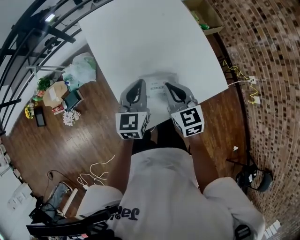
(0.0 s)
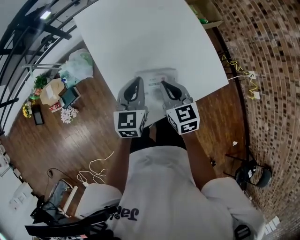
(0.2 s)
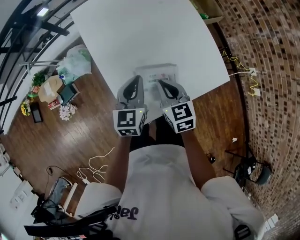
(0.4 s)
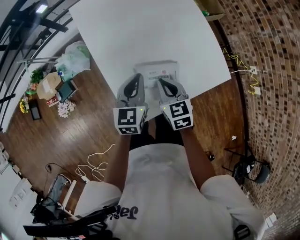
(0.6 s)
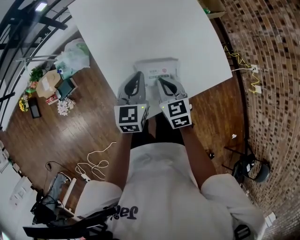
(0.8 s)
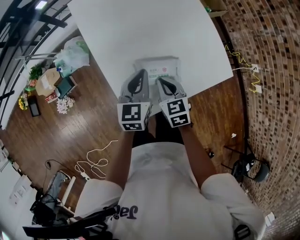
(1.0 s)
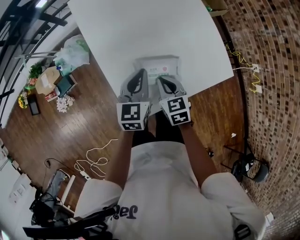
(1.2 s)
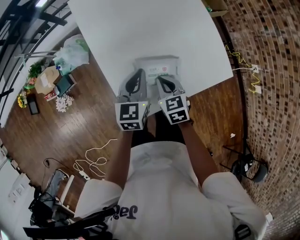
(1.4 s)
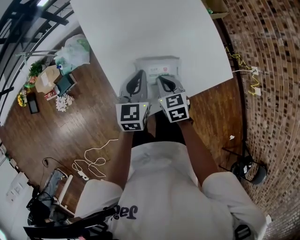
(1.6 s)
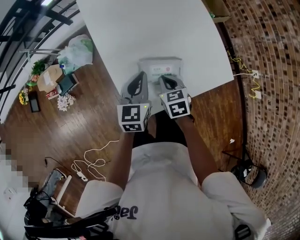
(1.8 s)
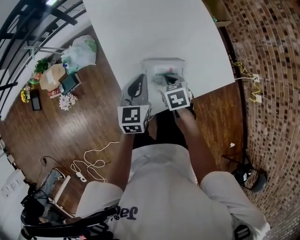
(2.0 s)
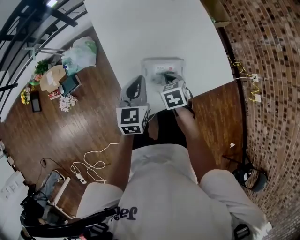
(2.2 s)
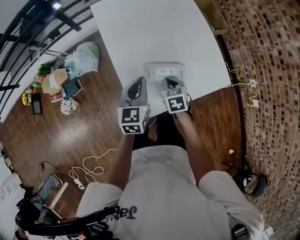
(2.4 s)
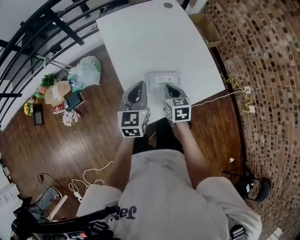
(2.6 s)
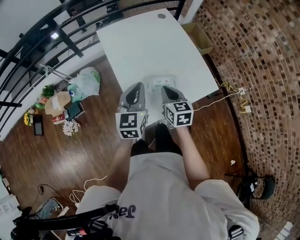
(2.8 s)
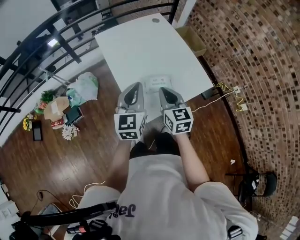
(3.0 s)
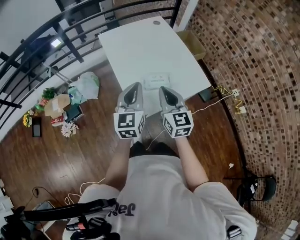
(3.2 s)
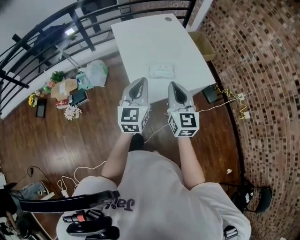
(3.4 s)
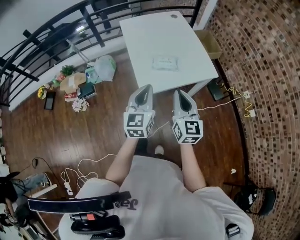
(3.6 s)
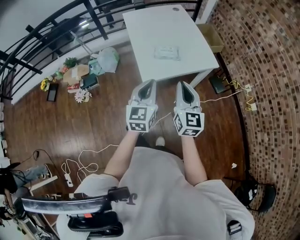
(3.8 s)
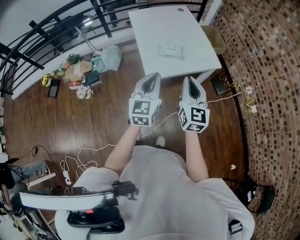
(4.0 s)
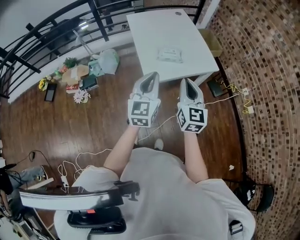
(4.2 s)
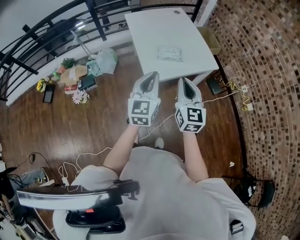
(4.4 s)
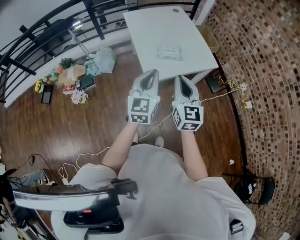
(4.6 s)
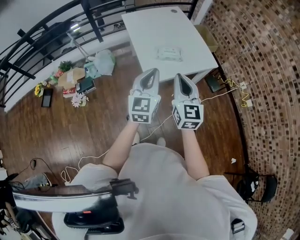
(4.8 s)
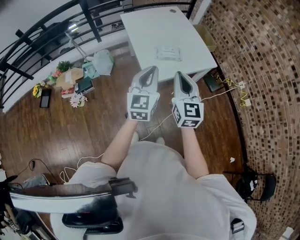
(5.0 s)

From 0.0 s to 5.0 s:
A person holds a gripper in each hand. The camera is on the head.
From 0.0 s to 1.6 s: The right gripper travels downward by approximately 15 cm, while the left gripper heads downward, covering about 5 cm.
From 1.6 s to 3.4 s: The left gripper moves backward and upward, roughly 30 cm, and changes its angle by some 20 degrees; the right gripper is displaced upward and backward by roughly 35 cm, and tips its fingers upward by some 40 degrees.
From 3.4 s to 5.0 s: Both grippers move backward, approximately 10 cm.

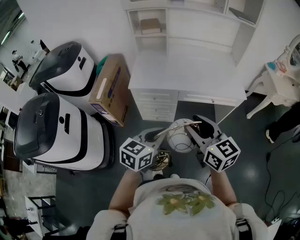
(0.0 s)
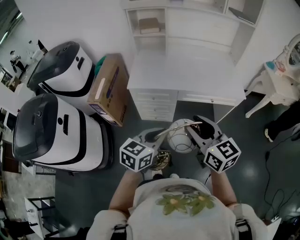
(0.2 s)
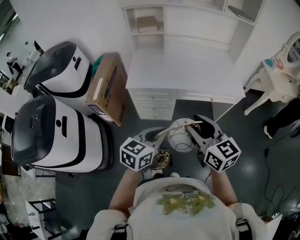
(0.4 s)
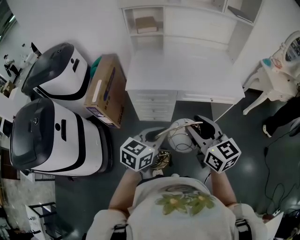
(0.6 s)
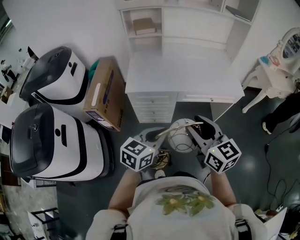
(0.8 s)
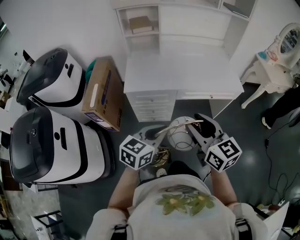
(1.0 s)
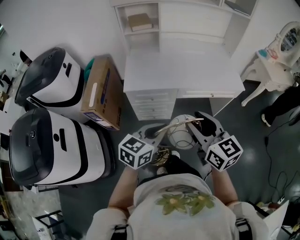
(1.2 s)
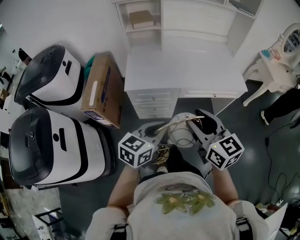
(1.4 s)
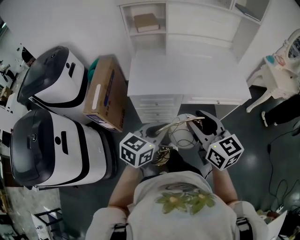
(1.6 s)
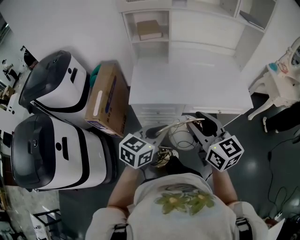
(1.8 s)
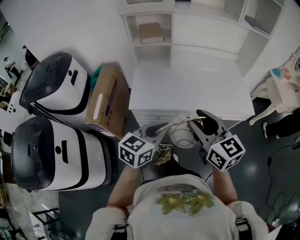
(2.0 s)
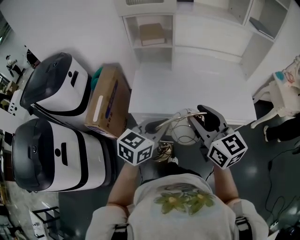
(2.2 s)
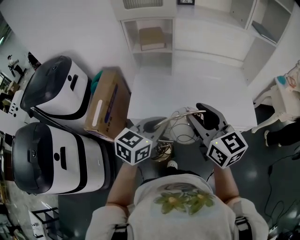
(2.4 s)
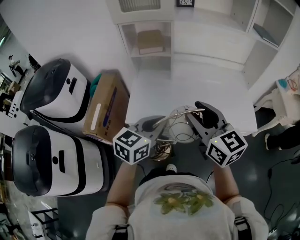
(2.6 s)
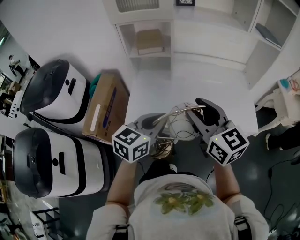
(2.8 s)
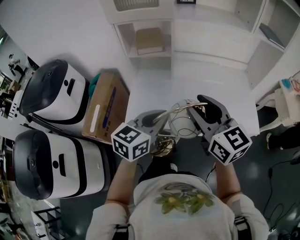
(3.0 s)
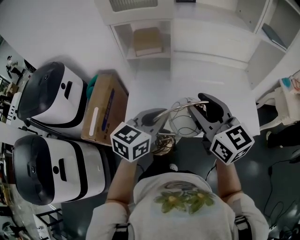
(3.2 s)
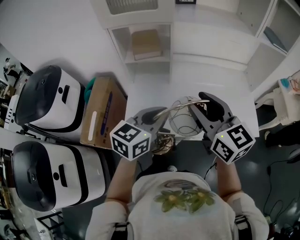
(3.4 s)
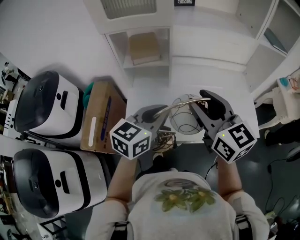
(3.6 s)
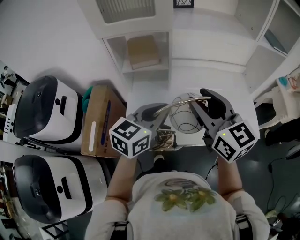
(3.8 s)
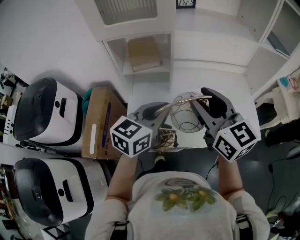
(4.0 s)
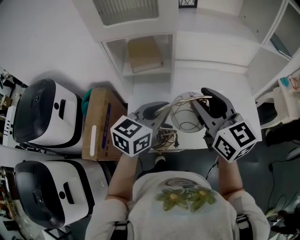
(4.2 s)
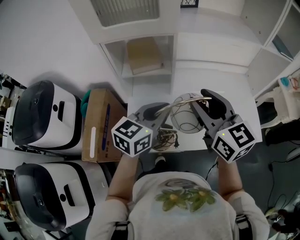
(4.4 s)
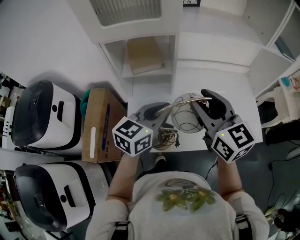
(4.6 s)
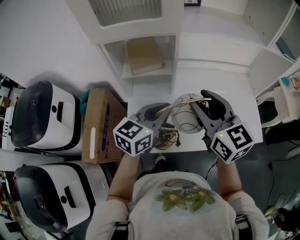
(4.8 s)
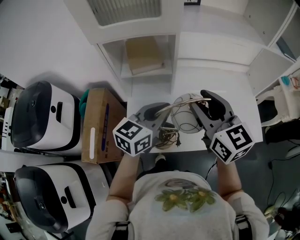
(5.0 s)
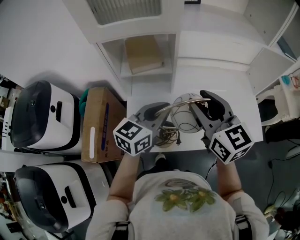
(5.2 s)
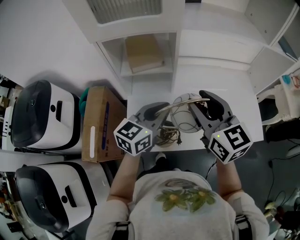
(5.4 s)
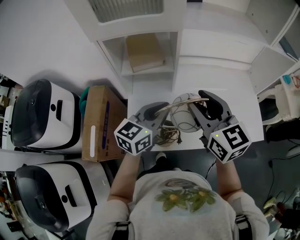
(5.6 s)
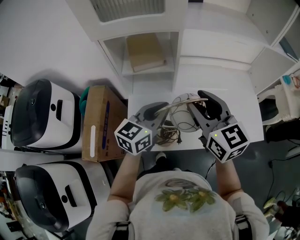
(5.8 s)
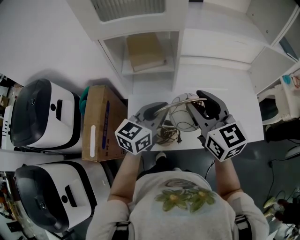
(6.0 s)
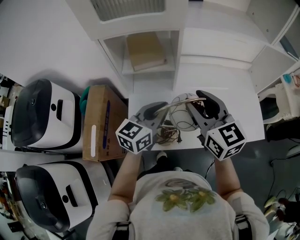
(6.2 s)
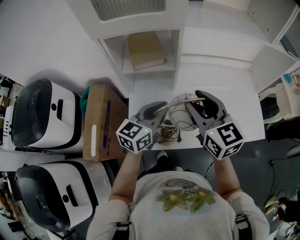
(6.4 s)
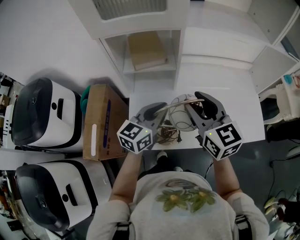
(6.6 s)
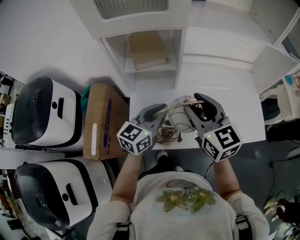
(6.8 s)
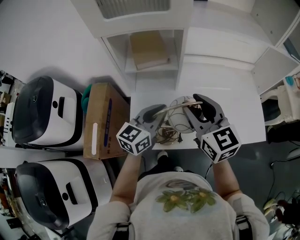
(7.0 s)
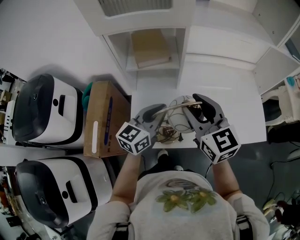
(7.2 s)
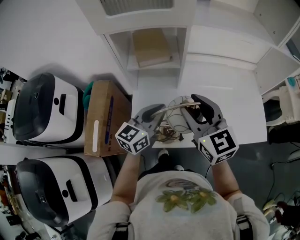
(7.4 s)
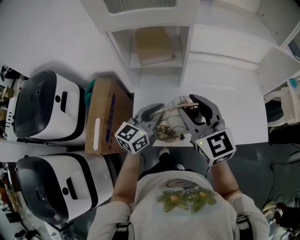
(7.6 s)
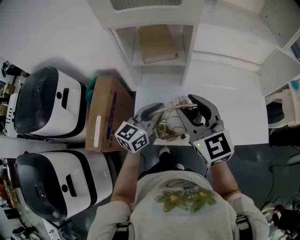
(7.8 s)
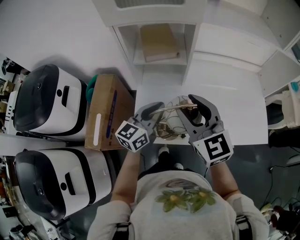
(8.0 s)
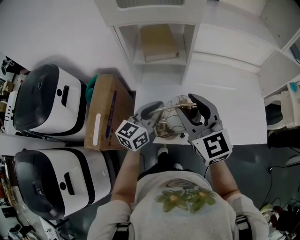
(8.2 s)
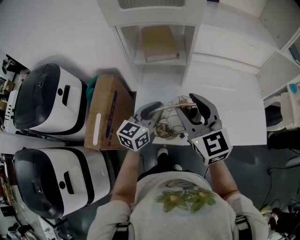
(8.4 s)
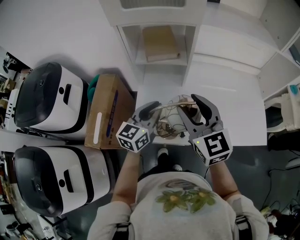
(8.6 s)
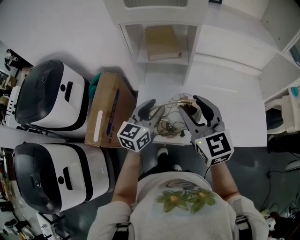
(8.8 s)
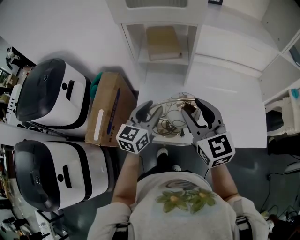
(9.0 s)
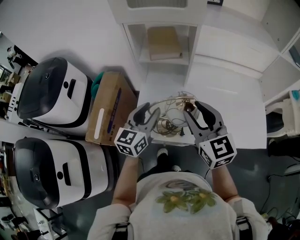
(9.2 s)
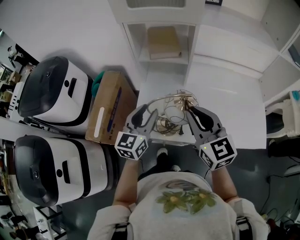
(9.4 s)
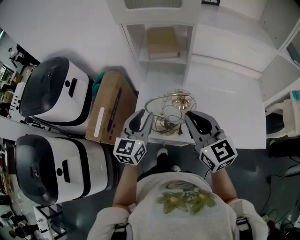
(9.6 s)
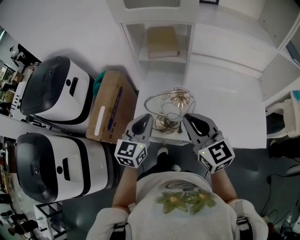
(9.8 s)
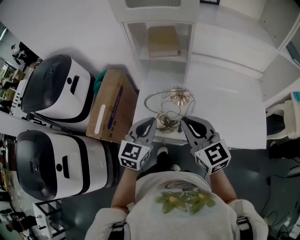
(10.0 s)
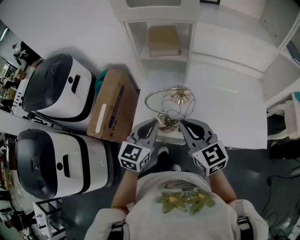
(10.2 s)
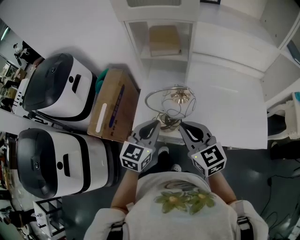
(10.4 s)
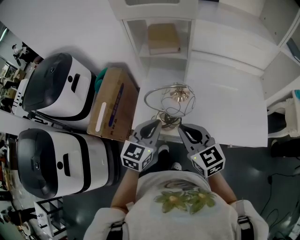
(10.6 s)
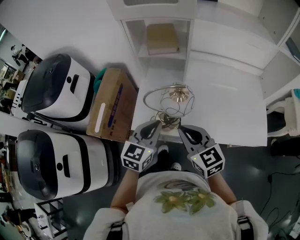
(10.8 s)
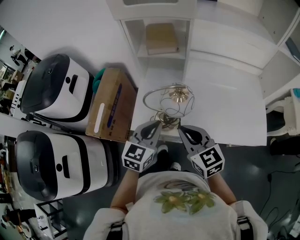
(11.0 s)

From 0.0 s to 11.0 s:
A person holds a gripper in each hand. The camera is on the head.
From 0.0 s to 1.6 s: The grippers both shift forward and to the left by roughly 15 cm.
From 1.6 s to 3.2 s: Both grippers move forward, roughly 30 cm.
From 3.2 s to 4.8 s: Both grippers move forward, about 15 cm.
From 4.8 s to 6.2 s: The grippers make only small movements.
From 6.2 s to 7.8 s: The left gripper moves approximately 5 cm. Meanwhile the right gripper moves to the left, some 5 cm.
From 7.8 s to 9.4 s: Both grippers move backward, some 5 cm. The left gripper swivels about 20 degrees, and opens up. The right gripper closes.
From 9.4 s to 11.0 s: The right gripper shifts approximately 10 cm downward and backward, while the left gripper moves backward, roughly 10 cm, and closes up.

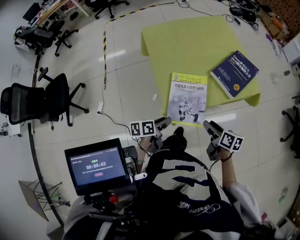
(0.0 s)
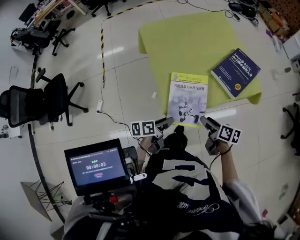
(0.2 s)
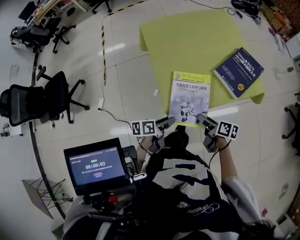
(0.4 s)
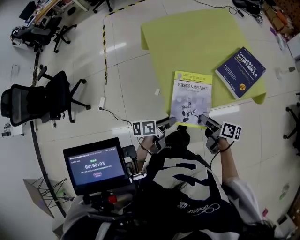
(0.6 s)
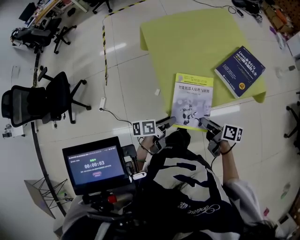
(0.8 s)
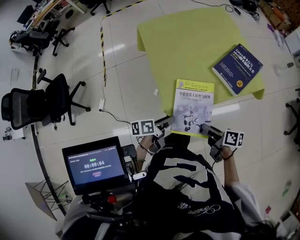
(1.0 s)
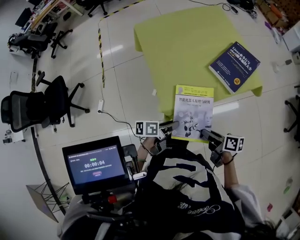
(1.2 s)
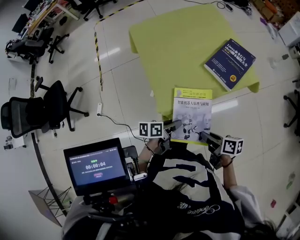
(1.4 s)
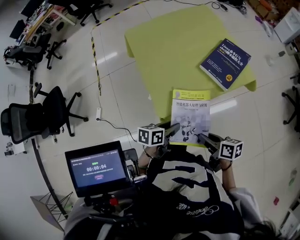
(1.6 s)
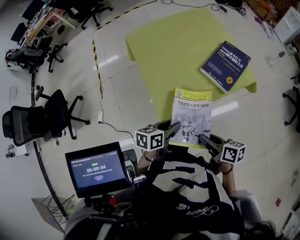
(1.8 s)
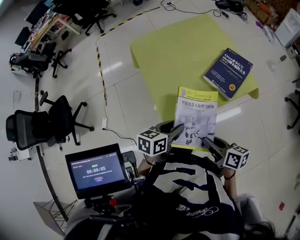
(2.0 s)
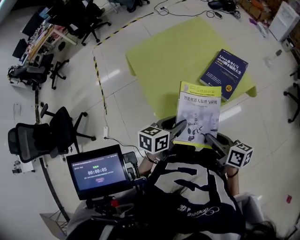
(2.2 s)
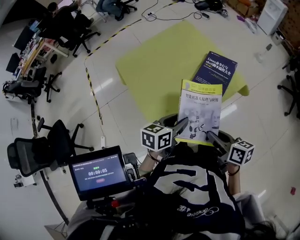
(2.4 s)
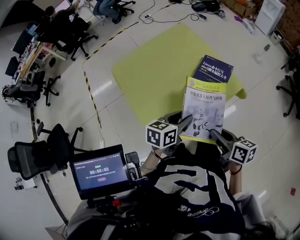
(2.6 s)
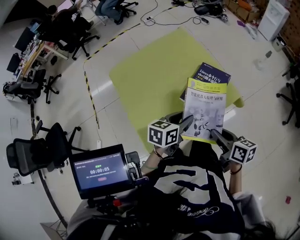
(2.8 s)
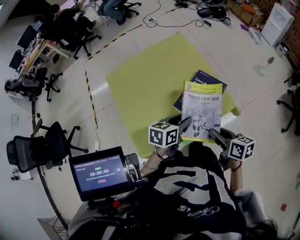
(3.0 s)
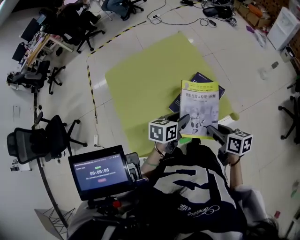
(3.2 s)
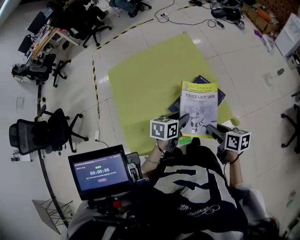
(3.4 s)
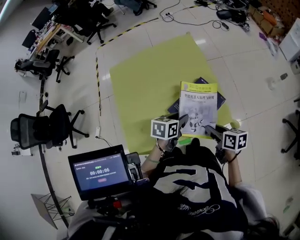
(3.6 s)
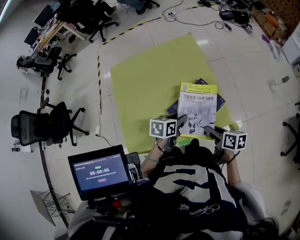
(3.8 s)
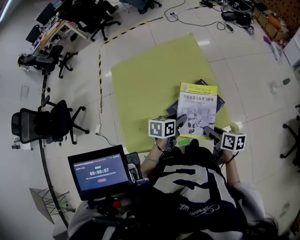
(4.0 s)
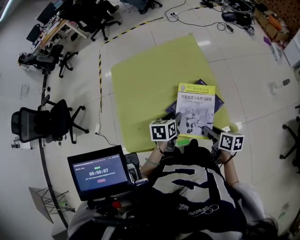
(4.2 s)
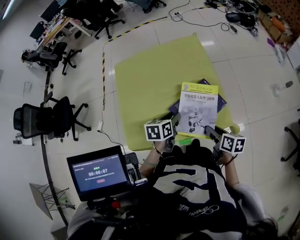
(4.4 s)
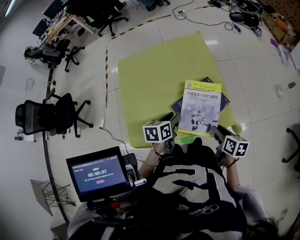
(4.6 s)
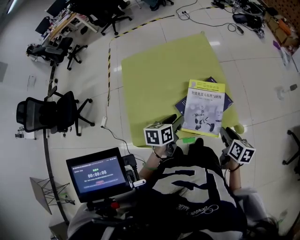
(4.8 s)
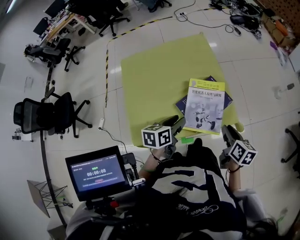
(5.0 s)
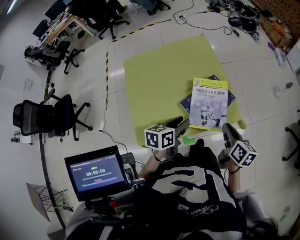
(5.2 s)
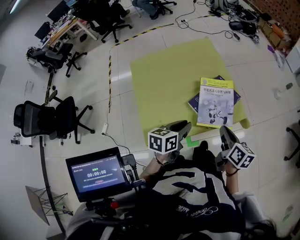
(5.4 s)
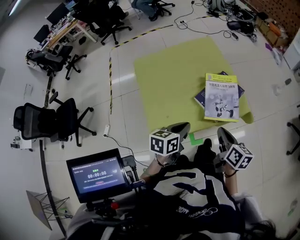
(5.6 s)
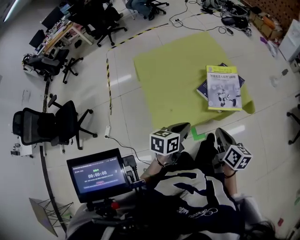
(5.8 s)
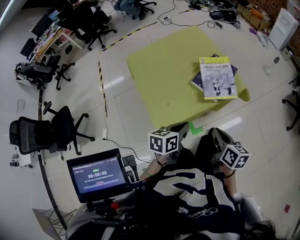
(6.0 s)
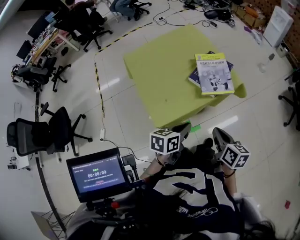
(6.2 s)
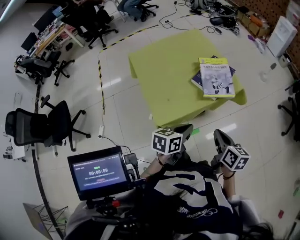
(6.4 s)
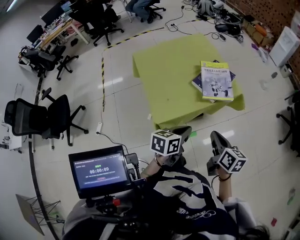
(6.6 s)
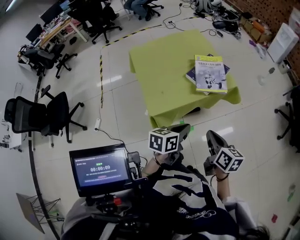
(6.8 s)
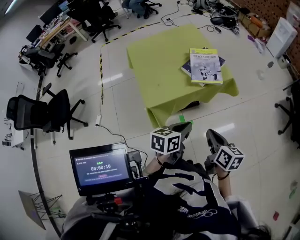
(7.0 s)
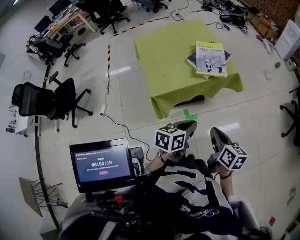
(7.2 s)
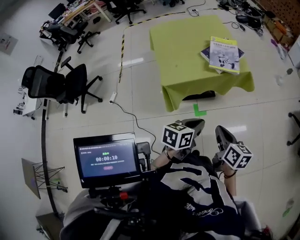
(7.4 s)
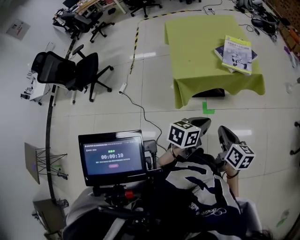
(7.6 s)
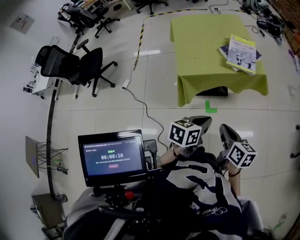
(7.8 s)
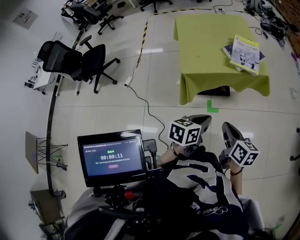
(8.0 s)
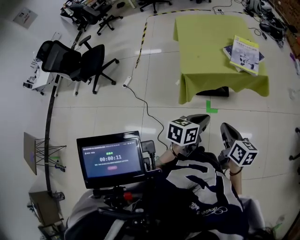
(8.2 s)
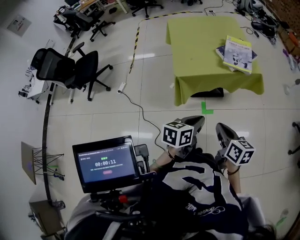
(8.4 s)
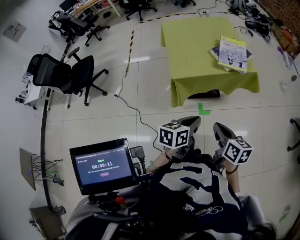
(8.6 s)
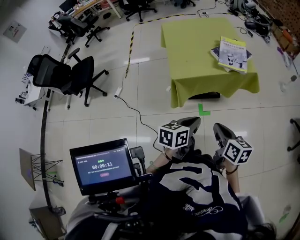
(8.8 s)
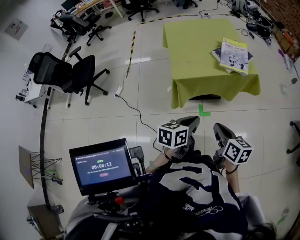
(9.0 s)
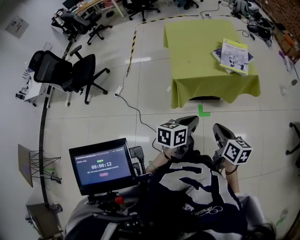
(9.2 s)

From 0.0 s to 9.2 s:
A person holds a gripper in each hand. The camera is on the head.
From 0.0 s to 1.6 s: The left gripper travels to the right by roughly 5 cm. Meanwhile the right gripper shifts approximately 5 cm backward, and closes its fingers.
From 1.6 s to 3.0 s: The left gripper shifts about 30 cm forward, to the right and upward. The right gripper moves forward and to the right, roughly 25 cm.
From 3.0 s to 4.6 s: The right gripper travels to the right, downward and forward by about 15 cm; the left gripper changes place by approximately 5 cm, and swivels roughly 30 degrees.
From 4.6 s to 6.2 s: The right gripper changes place by some 30 cm, changes its angle by about 20 degrees, and closes its fingers. The left gripper ends up approximately 25 cm from where it was, rotates about 30 degrees, and closes.
From 6.2 s to 7.6 s: The left gripper goes approximately 25 cm backward and to the right; the right gripper shifts about 20 cm backward, and turns by about 20 degrees.
From 7.6 s to 9.2 s: The left gripper shifts by about 5 cm.
